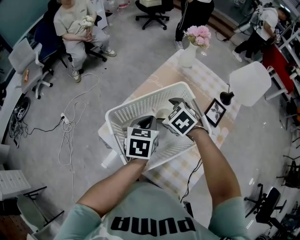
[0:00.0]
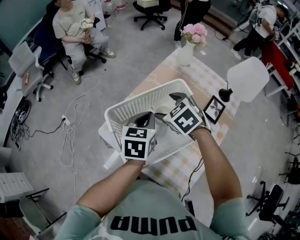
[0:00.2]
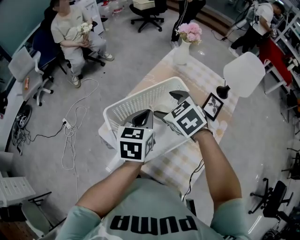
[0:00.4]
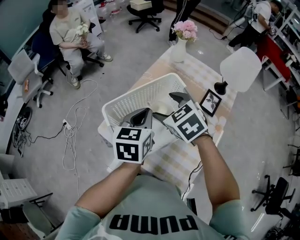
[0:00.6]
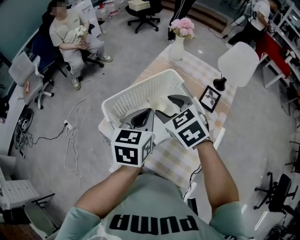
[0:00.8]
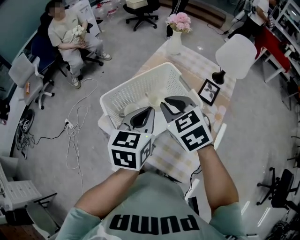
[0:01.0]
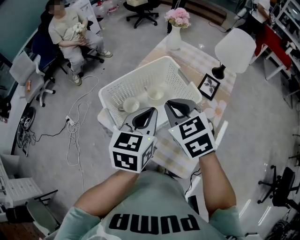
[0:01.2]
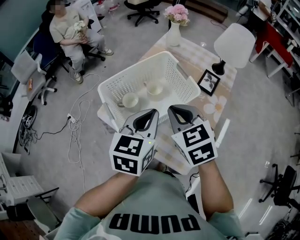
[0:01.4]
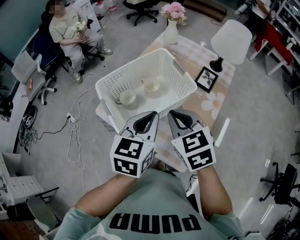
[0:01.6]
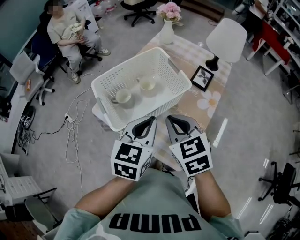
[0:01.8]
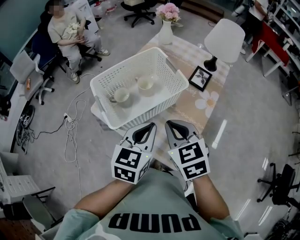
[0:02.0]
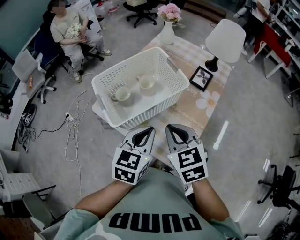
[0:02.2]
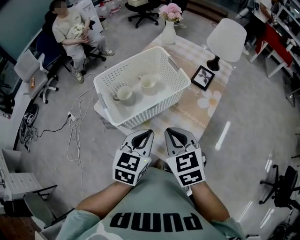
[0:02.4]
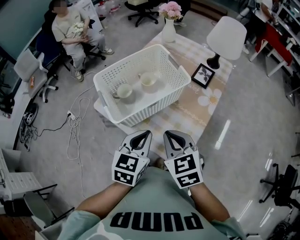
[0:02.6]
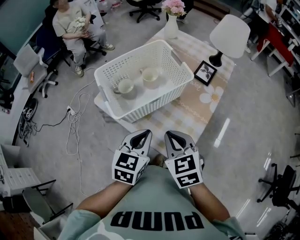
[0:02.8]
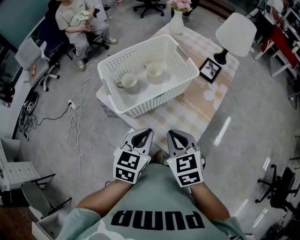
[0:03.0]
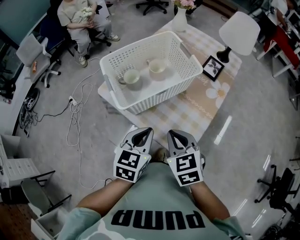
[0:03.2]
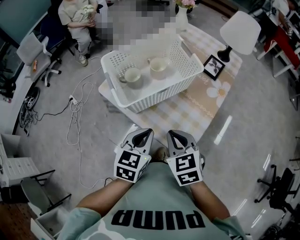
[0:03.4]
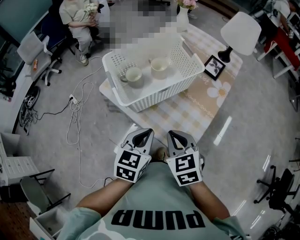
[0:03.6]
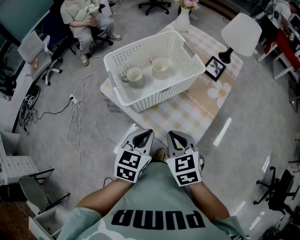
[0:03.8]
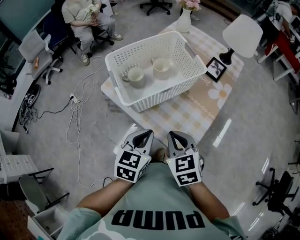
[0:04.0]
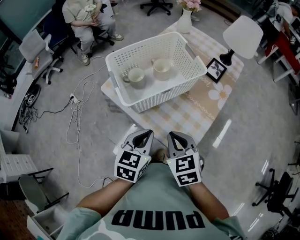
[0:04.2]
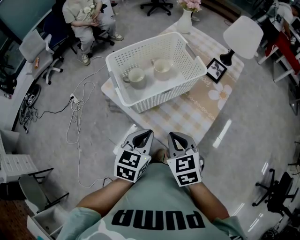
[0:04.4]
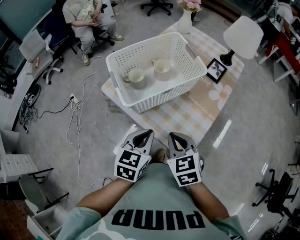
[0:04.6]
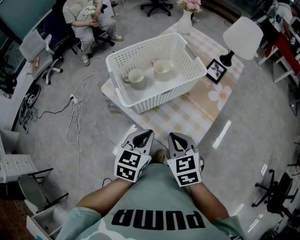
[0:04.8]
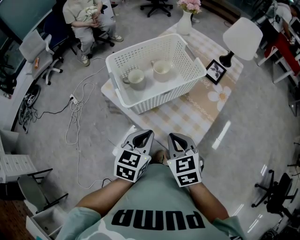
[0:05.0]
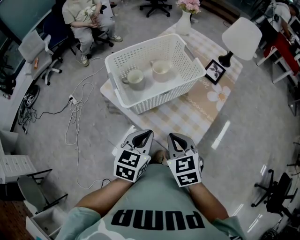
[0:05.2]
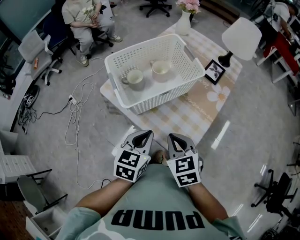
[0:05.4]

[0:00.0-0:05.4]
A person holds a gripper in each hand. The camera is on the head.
0:00.0 to 0:01.4: The grippers both shift backward and upward by about 20 cm. The right gripper swivels about 30 degrees, and closes.
0:01.4 to 0:02.8: The two grippers go roughly 15 cm backward and downward.
0:02.8 to 0:04.0: The left gripper moves approximately 5 cm, while the right gripper shifts by about 5 cm.
0:04.0 to 0:05.4: Both grippers stay about where they are.

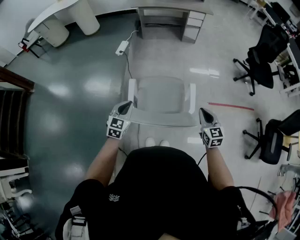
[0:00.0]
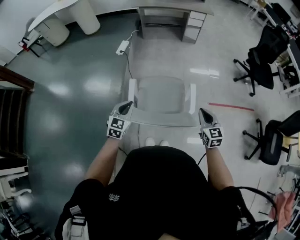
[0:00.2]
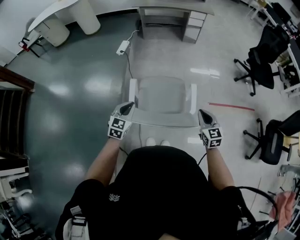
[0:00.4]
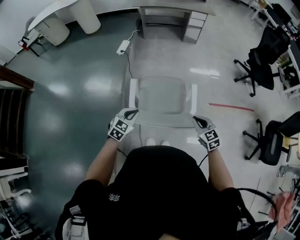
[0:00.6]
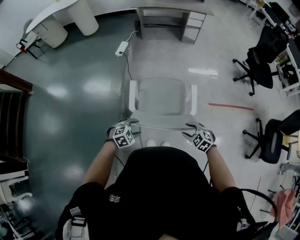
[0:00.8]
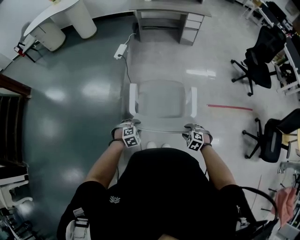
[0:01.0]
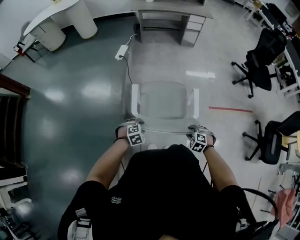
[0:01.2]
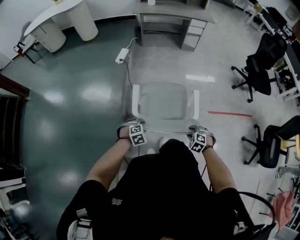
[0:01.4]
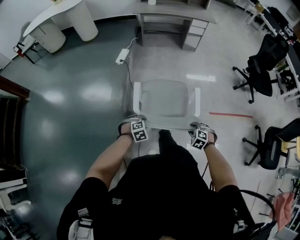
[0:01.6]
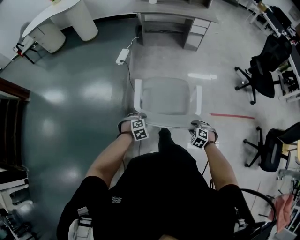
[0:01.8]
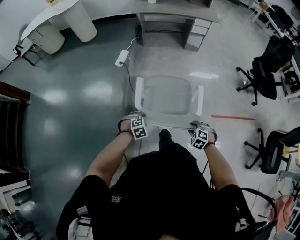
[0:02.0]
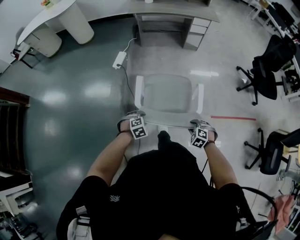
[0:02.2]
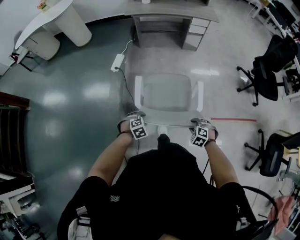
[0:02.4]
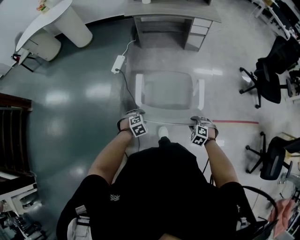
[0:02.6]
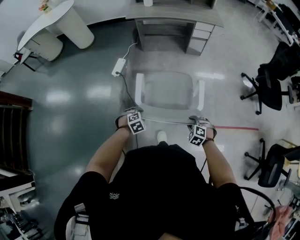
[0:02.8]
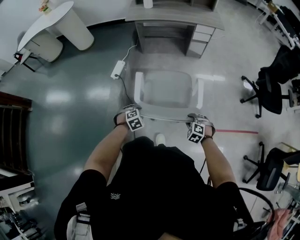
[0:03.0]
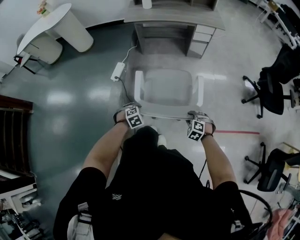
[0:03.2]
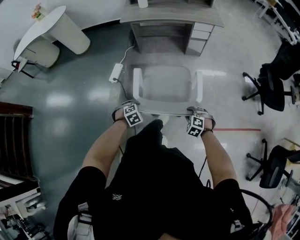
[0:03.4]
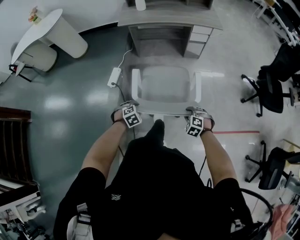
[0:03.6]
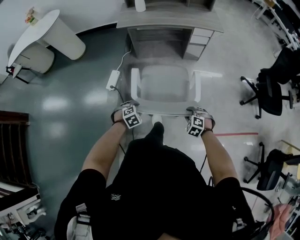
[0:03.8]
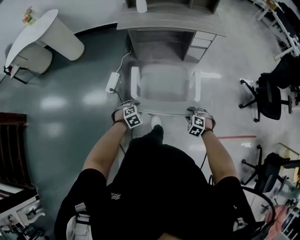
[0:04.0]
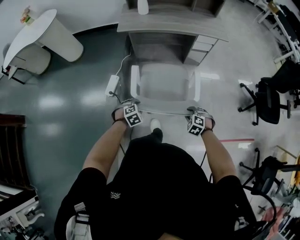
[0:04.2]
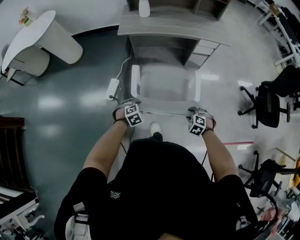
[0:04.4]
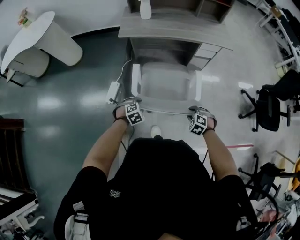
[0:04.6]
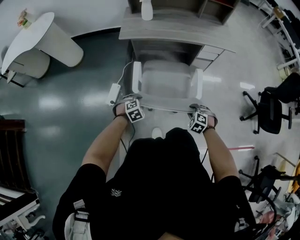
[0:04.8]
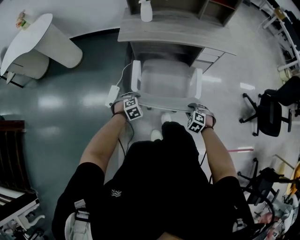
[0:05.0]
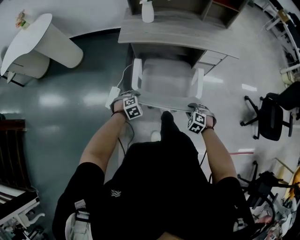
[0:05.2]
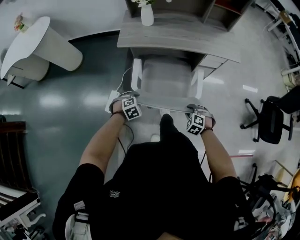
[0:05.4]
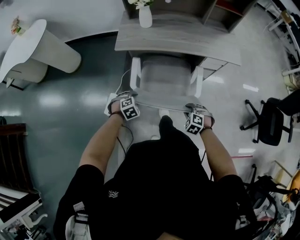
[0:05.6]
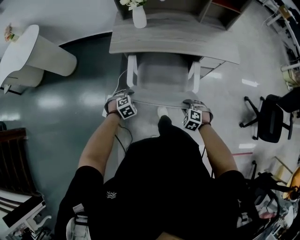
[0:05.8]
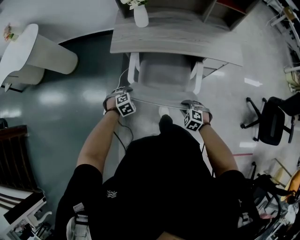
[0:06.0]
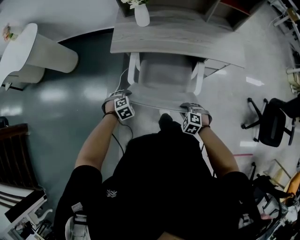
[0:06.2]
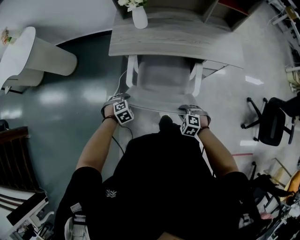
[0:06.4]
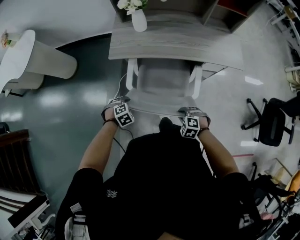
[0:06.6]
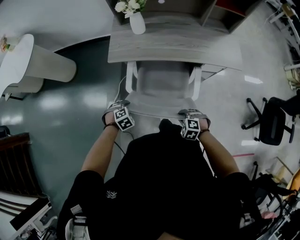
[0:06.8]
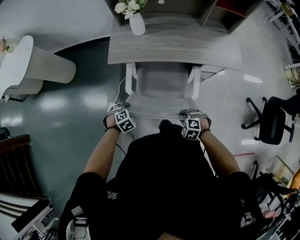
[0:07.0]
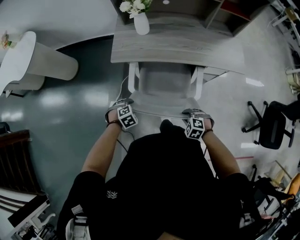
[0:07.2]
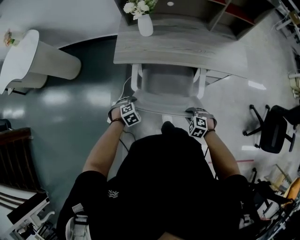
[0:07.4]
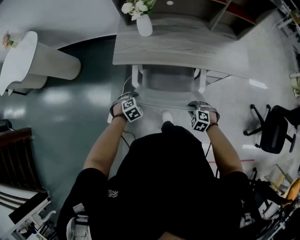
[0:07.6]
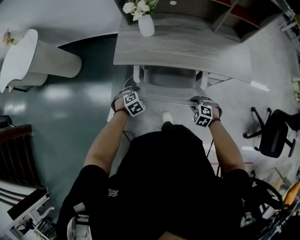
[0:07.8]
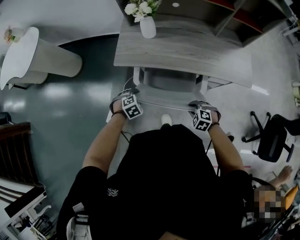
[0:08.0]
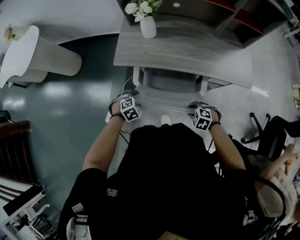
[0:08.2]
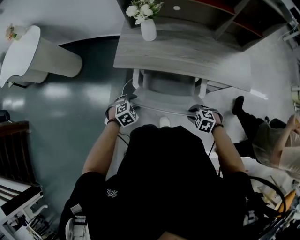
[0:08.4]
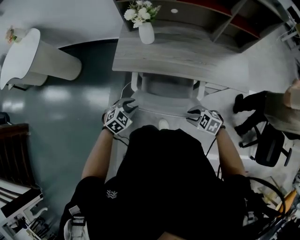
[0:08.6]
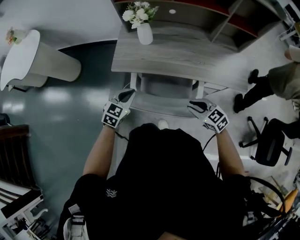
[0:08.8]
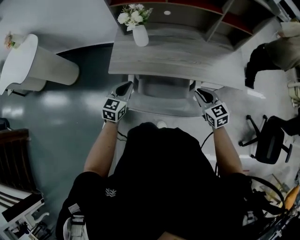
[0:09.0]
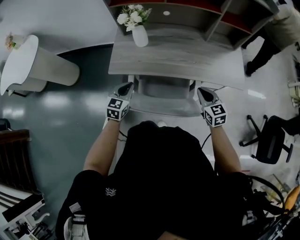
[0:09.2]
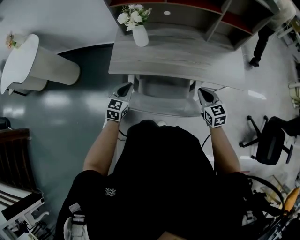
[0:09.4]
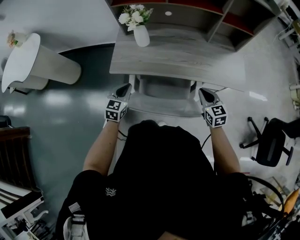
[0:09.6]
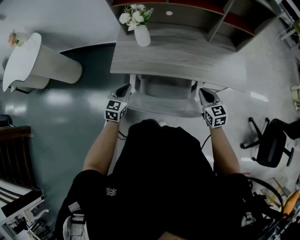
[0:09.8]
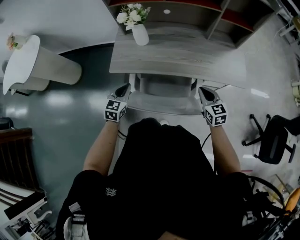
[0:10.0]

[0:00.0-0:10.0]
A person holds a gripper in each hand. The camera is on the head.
0:00.0 to 0:01.4: The right gripper shifts approximately 20 cm downward and to the left, points its fingers approximately 50 degrees further downward, and opens. The left gripper heads downward, covering about 15 cm, angles its fingers downward, by some 40 degrees, and opens up.
0:01.4 to 0:02.8: Both grippers move forward, approximately 35 cm.
0:02.8 to 0:04.2: The right gripper ends up some 35 cm from where it was, while the left gripper changes place by about 35 cm.
0:04.2 to 0:05.8: The grippers both shift forward by roughly 35 cm.
0:05.8 to 0:07.2: The grippers stay close to where they were, moving slightly.
0:07.2 to 0:08.6: The right gripper shifts by about 15 cm, and rotates about 20 degrees. Meanwhile the left gripper changes place by roughly 15 cm, and changes its angle by some 30 degrees.
0:08.6 to 0:10.0: The right gripper shifts by approximately 15 cm, turns by approximately 60 degrees, and closes; the left gripper ends up about 10 cm from where it was, rotates roughly 40 degrees, and closes its fingers.

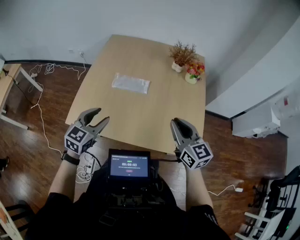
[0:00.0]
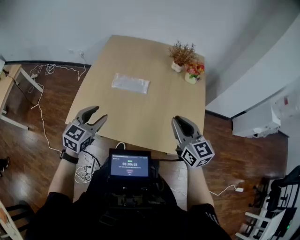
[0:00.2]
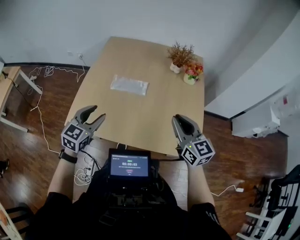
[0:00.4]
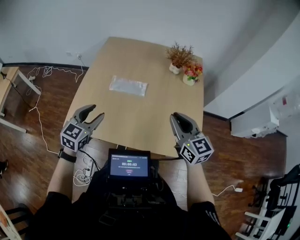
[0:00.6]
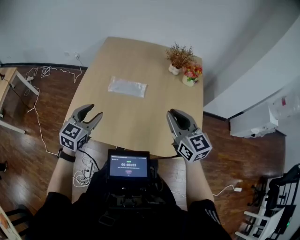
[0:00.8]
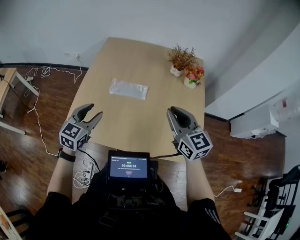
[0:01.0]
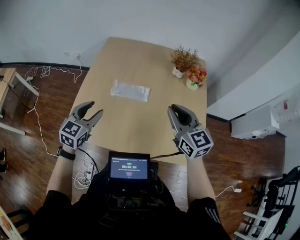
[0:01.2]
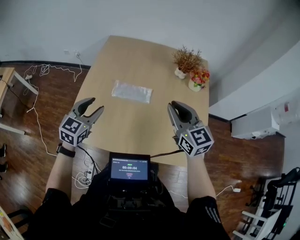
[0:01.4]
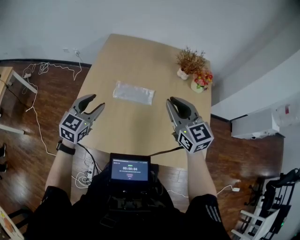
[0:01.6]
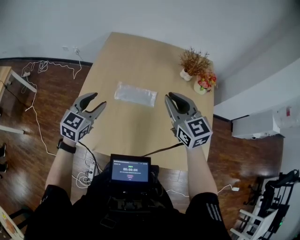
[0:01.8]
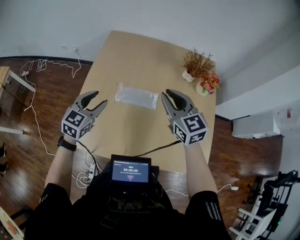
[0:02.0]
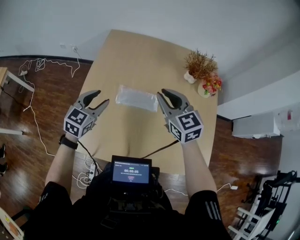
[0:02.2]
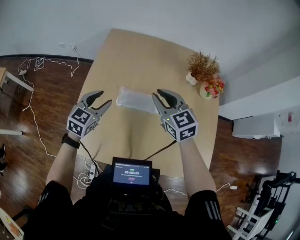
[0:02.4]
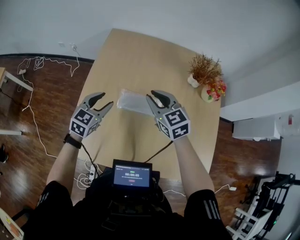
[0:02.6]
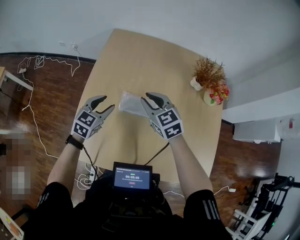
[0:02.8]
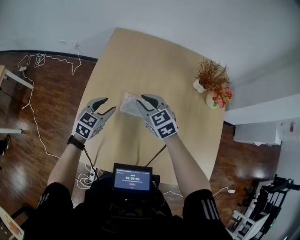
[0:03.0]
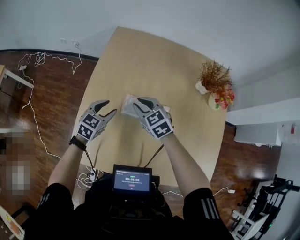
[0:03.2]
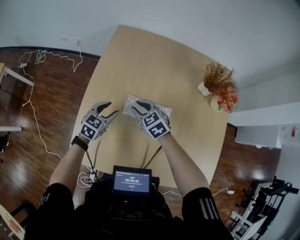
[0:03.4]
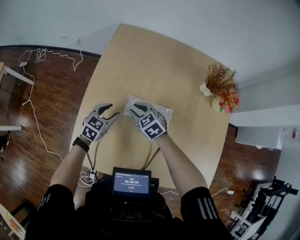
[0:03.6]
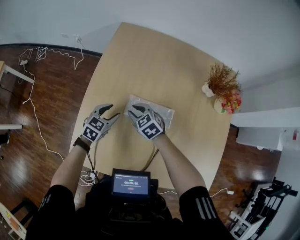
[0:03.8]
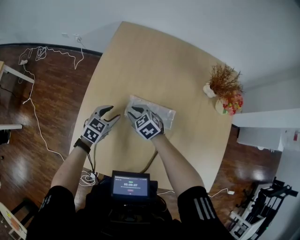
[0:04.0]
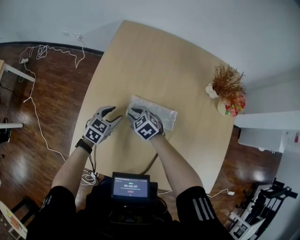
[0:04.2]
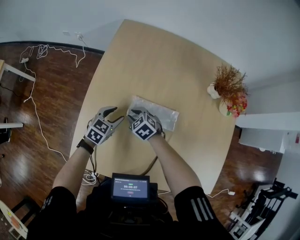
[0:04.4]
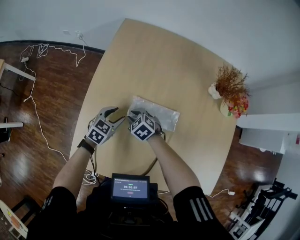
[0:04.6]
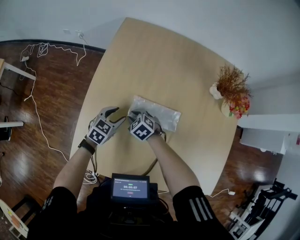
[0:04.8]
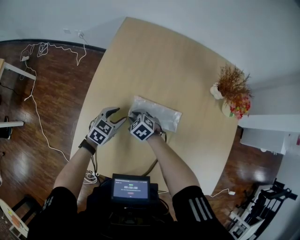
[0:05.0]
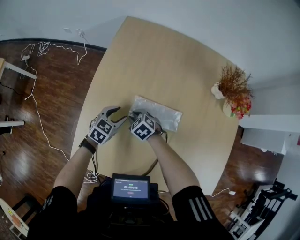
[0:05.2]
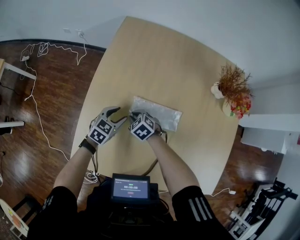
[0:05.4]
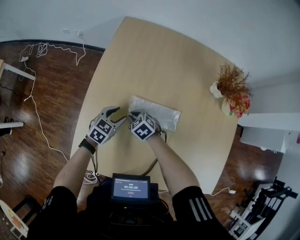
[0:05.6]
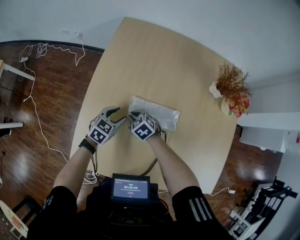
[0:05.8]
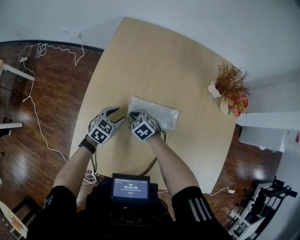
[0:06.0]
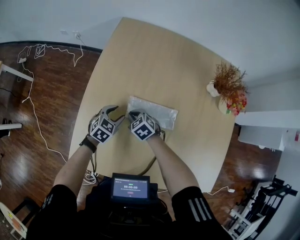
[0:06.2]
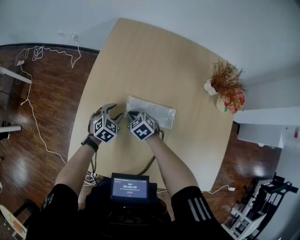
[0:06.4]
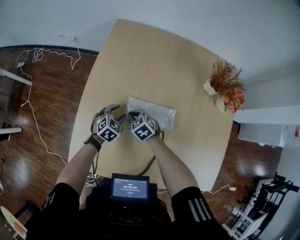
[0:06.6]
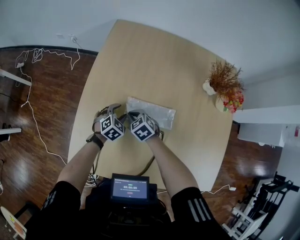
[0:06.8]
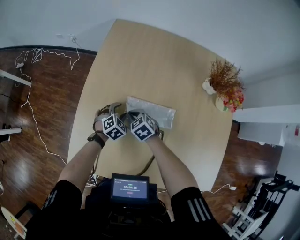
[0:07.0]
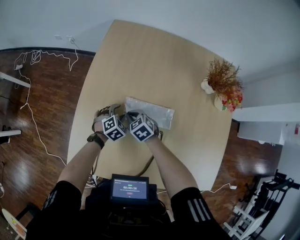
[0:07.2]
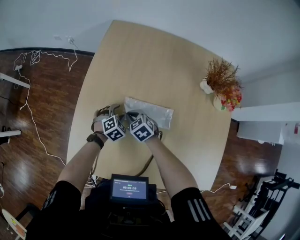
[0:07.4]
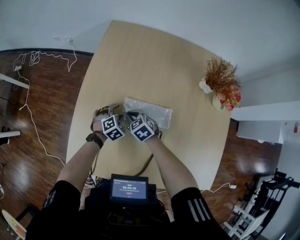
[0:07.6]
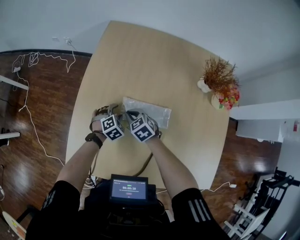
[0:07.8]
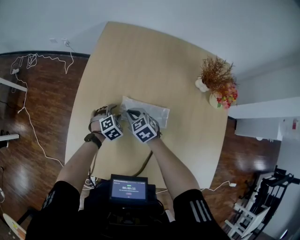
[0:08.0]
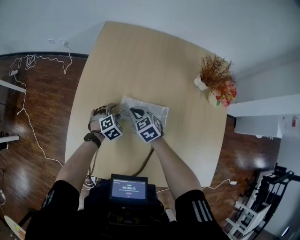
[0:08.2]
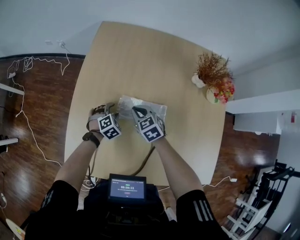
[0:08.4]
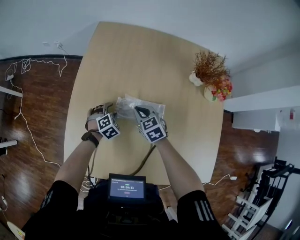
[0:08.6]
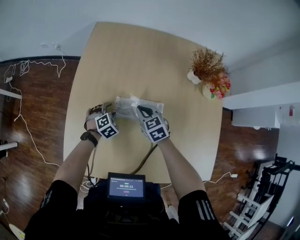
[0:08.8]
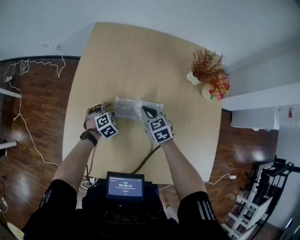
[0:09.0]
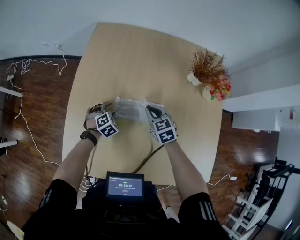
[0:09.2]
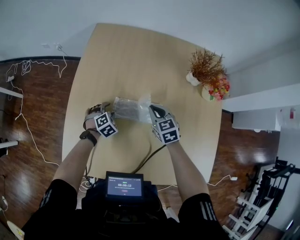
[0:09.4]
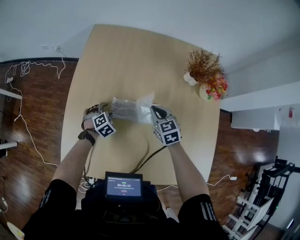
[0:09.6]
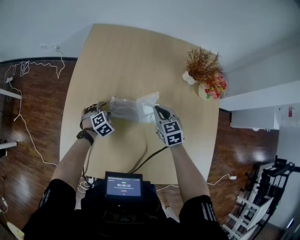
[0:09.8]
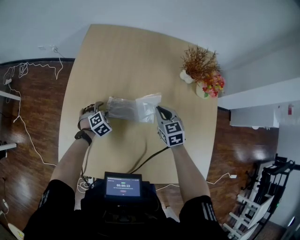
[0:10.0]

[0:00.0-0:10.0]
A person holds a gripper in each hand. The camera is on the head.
0:00.0 to 0:01.4: The two grippers go some 15 cm forward and to the left.
0:01.4 to 0:02.8: The right gripper shifts some 30 cm forward, to the left and downward, and swivels about 20 degrees; the left gripper shifts roughly 20 cm forward and downward.
0:02.8 to 0:04.2: The right gripper moves downward and to the left, approximately 25 cm, and changes its angle by roughly 30 degrees. Meanwhile the left gripper moves downward, some 15 cm.
0:04.2 to 0:05.8: The right gripper goes approximately 5 cm downward.
0:05.8 to 0:07.2: The left gripper is displaced downward by approximately 5 cm, and rotates roughly 30 degrees.
0:07.2 to 0:08.6: The right gripper shifts approximately 10 cm to the right and upward.
0:08.6 to 0:10.0: The right gripper goes roughly 15 cm to the right.
